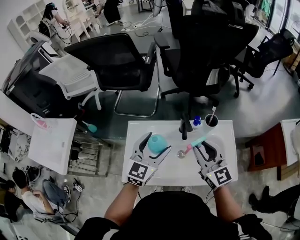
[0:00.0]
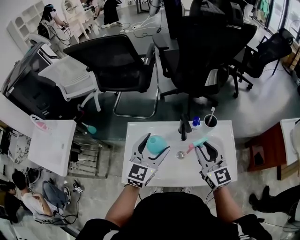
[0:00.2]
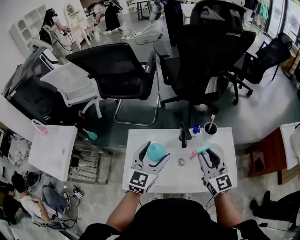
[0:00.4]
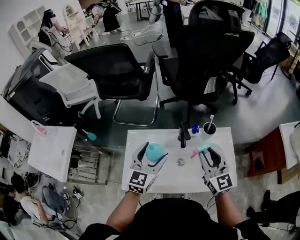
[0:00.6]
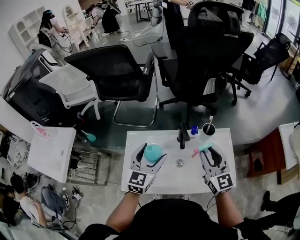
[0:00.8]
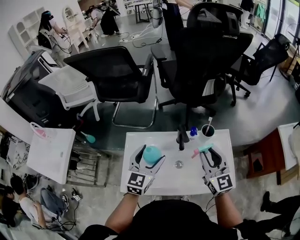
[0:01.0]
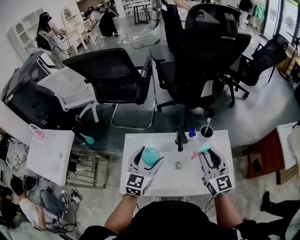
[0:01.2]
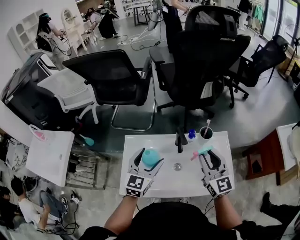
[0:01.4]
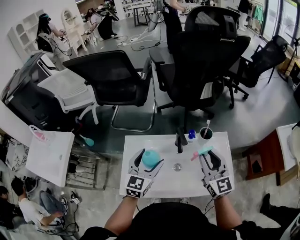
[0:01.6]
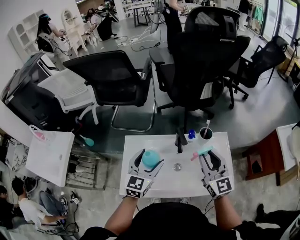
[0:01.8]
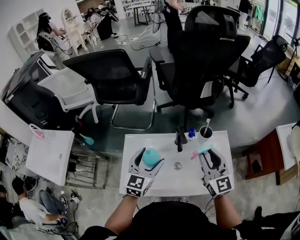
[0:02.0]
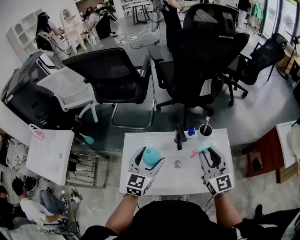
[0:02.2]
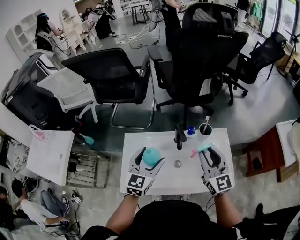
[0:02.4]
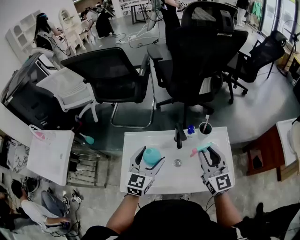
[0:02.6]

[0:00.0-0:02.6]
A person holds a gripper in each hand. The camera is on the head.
0:00.0 to 0:01.2: The right gripper goes roughly 5 cm to the right.
0:01.2 to 0:02.6: The grippers move only a little.

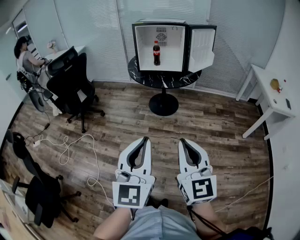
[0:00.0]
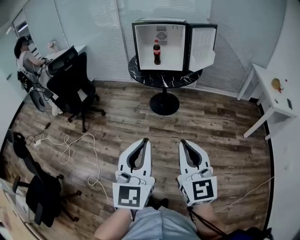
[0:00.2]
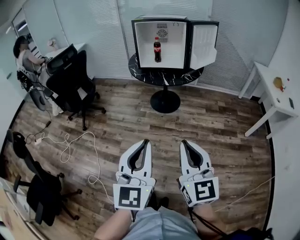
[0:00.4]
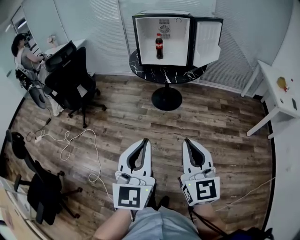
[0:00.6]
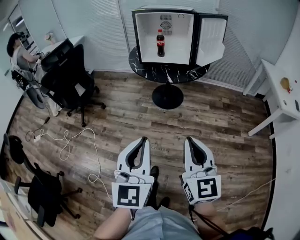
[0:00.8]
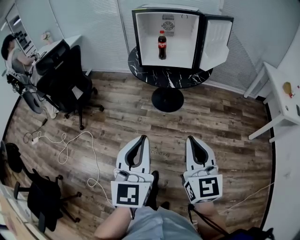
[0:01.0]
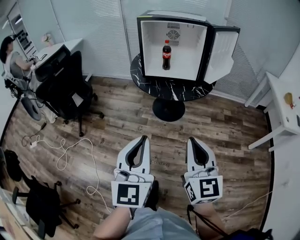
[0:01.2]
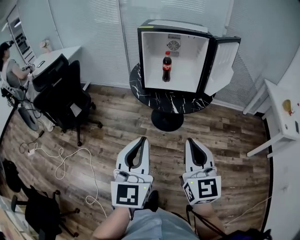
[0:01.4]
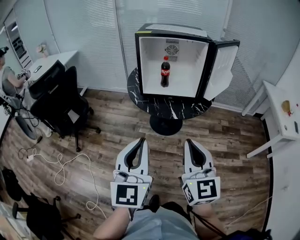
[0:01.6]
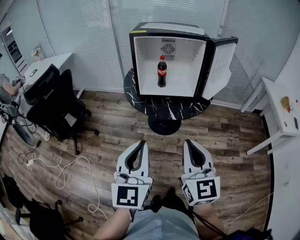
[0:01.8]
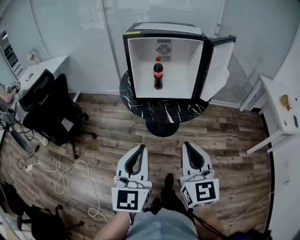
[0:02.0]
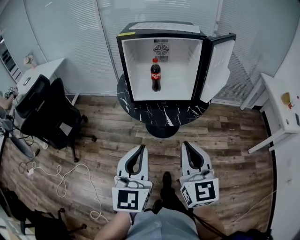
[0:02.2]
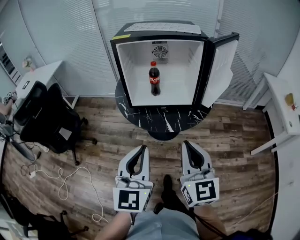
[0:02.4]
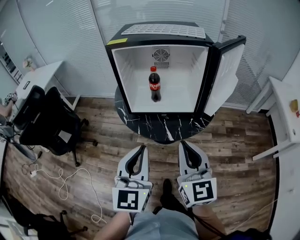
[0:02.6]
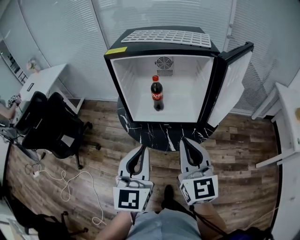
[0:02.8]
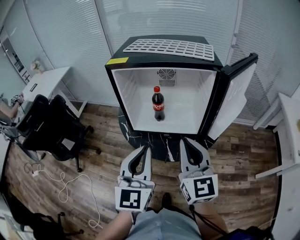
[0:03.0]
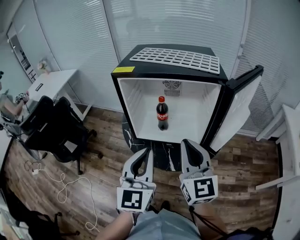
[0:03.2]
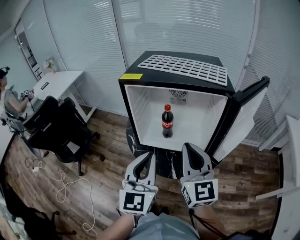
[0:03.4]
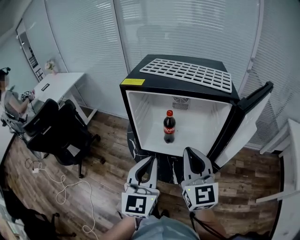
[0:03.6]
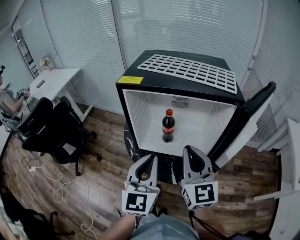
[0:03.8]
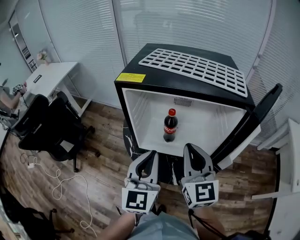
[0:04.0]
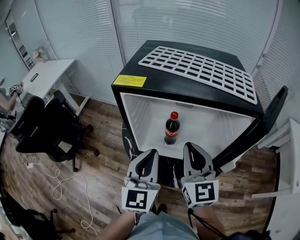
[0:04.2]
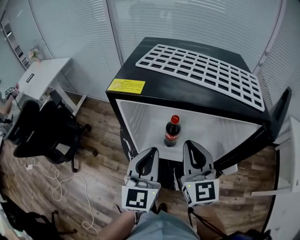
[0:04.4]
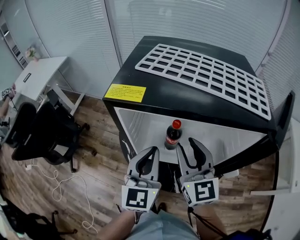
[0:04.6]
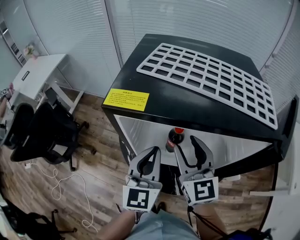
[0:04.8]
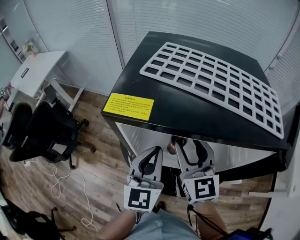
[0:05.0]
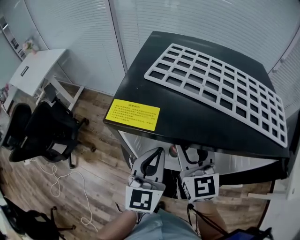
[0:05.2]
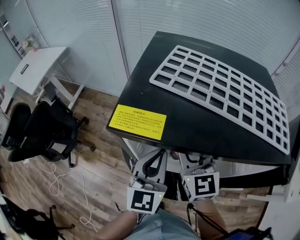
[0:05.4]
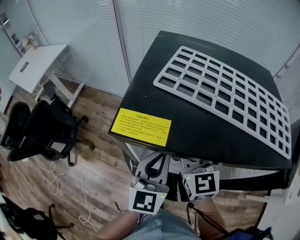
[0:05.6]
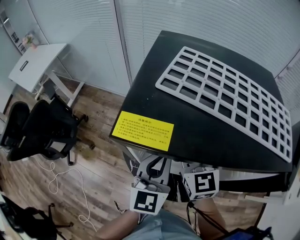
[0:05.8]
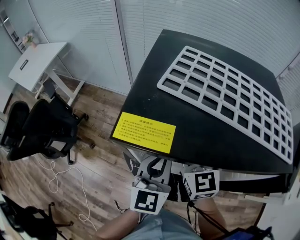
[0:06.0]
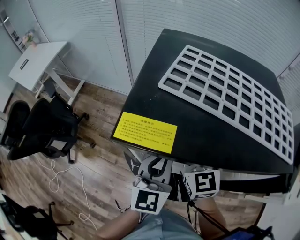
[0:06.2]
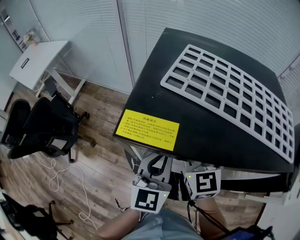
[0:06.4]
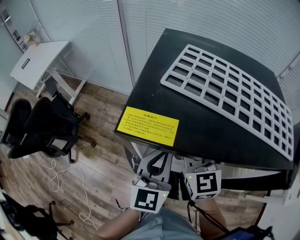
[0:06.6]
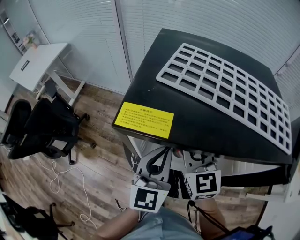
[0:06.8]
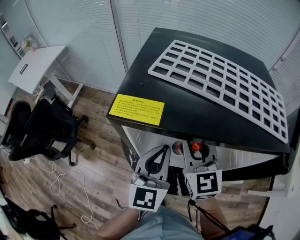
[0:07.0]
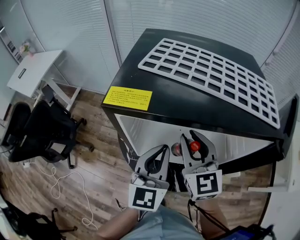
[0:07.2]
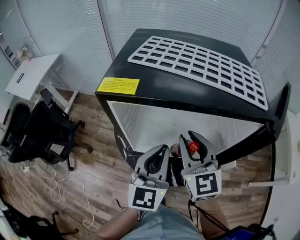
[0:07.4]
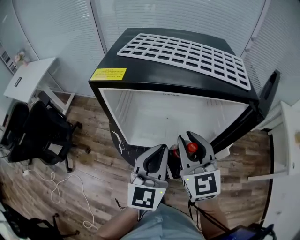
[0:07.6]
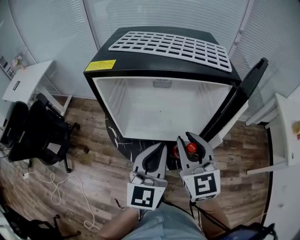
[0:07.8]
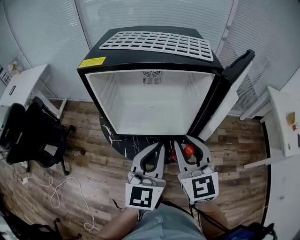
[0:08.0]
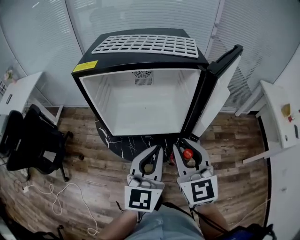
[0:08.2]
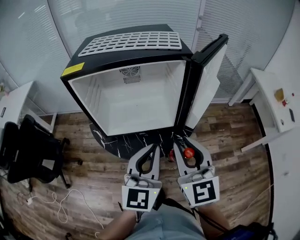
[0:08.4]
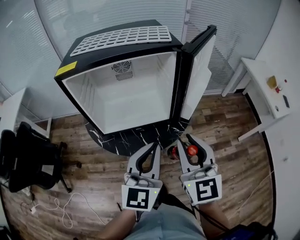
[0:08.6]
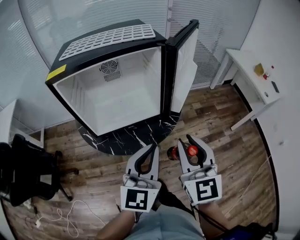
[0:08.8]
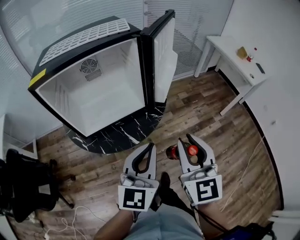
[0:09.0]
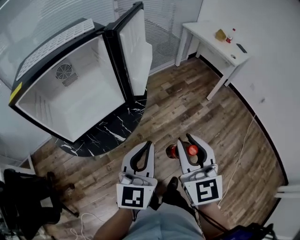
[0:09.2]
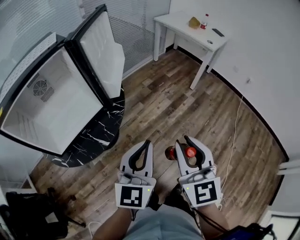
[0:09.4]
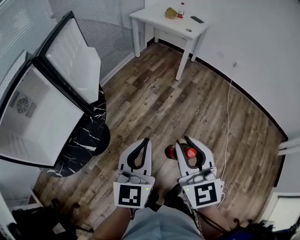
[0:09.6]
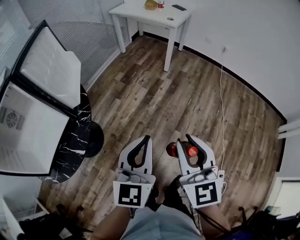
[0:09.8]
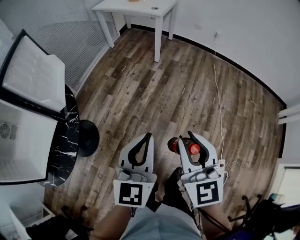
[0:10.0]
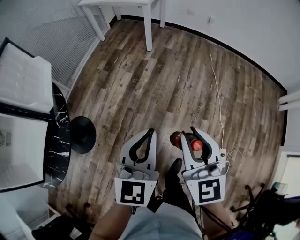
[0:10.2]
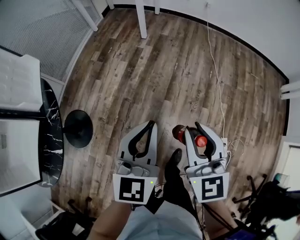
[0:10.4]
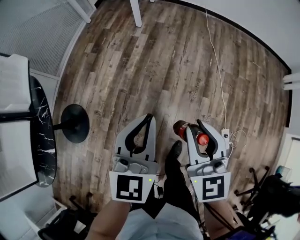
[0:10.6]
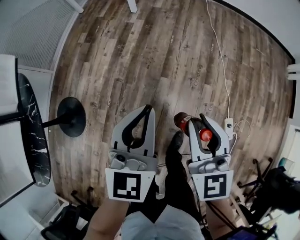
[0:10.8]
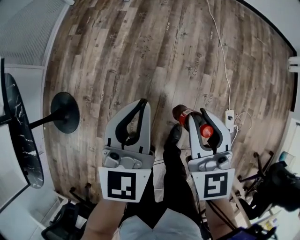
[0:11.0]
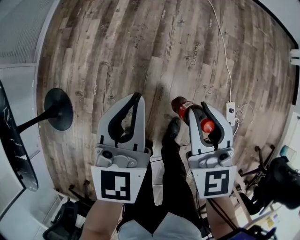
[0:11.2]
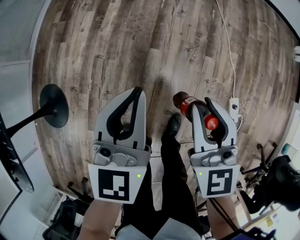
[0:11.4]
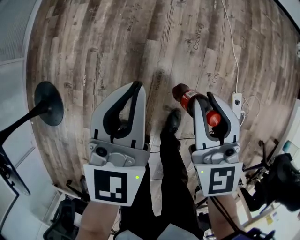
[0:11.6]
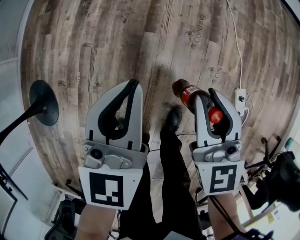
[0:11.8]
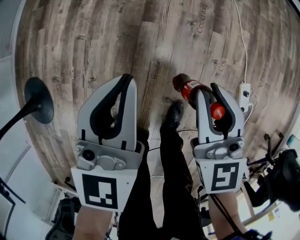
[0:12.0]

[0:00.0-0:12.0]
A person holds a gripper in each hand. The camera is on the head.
0:00.0 to 0:01.6: Both grippers travel together forward, some 35 cm.
0:01.6 to 0:03.0: The grippers both shift forward by about 30 cm.
0:03.0 to 0:04.4: The grippers both shift forward by about 20 cm.
0:04.4 to 0:06.0: Both grippers travel together forward, roughly 15 cm. The right gripper opens up.
0:06.0 to 0:07.6: Both grippers move backward and to the right, about 15 cm.
0:07.6 to 0:09.0: The left gripper ends up approximately 25 cm from where it was, and changes its angle by about 30 degrees; the right gripper ends up roughly 30 cm from where it was, and changes its angle by about 40 degrees.
0:09.0 to 0:10.4: The pair of grippers is taken some 40 cm. The left gripper rotates roughly 50 degrees; the right gripper turns by approximately 50 degrees.
0:10.4 to 0:12.0: The grippers both shift downward by approximately 40 cm.

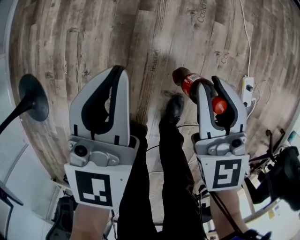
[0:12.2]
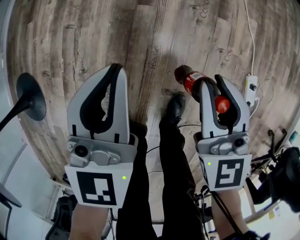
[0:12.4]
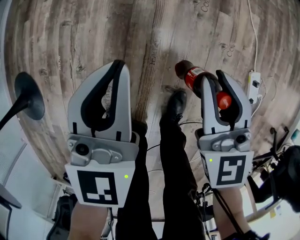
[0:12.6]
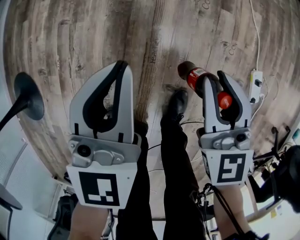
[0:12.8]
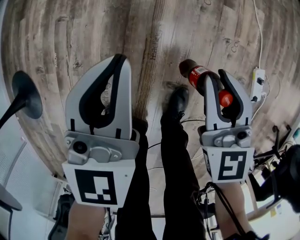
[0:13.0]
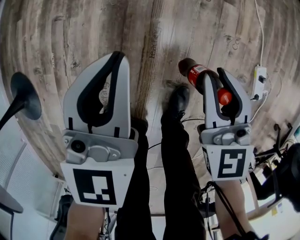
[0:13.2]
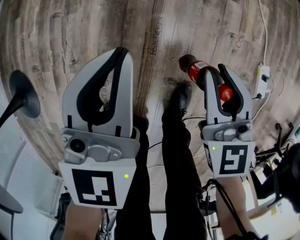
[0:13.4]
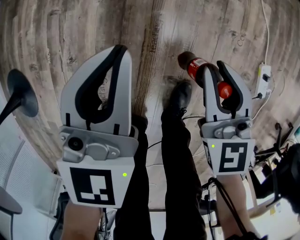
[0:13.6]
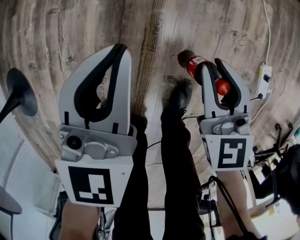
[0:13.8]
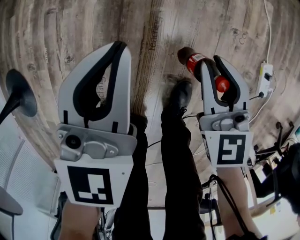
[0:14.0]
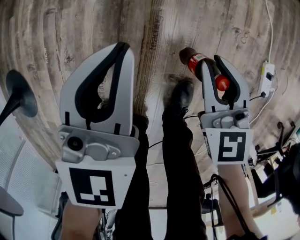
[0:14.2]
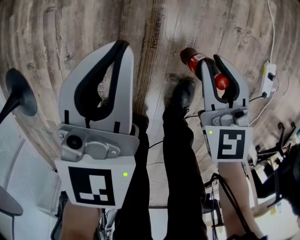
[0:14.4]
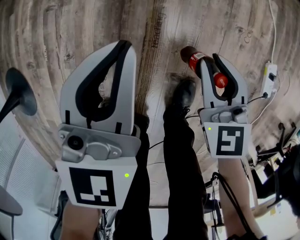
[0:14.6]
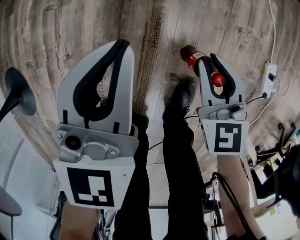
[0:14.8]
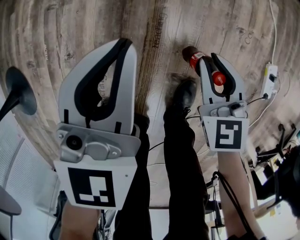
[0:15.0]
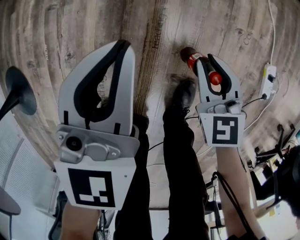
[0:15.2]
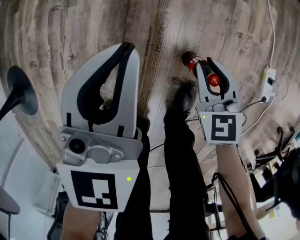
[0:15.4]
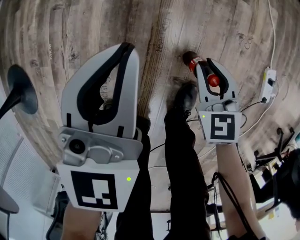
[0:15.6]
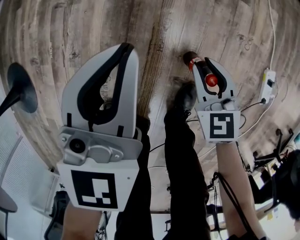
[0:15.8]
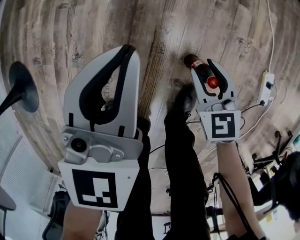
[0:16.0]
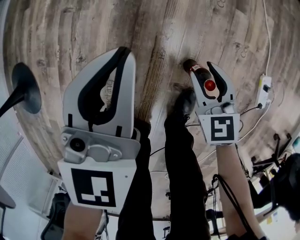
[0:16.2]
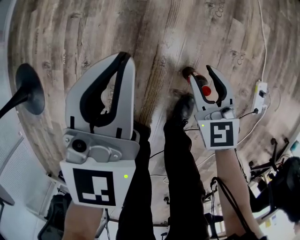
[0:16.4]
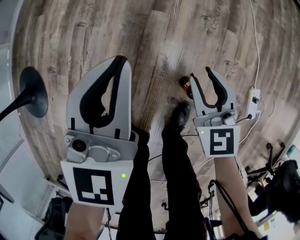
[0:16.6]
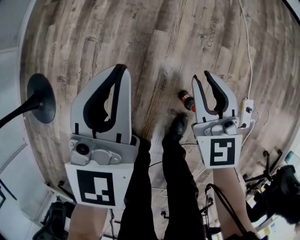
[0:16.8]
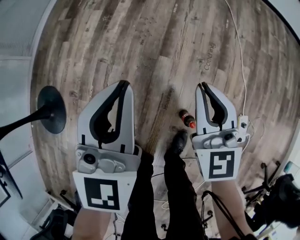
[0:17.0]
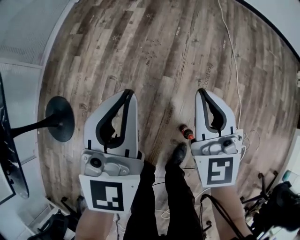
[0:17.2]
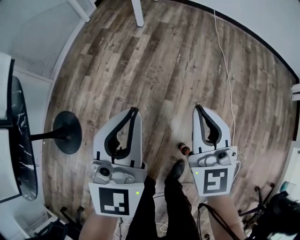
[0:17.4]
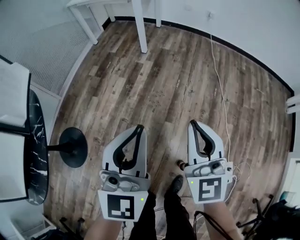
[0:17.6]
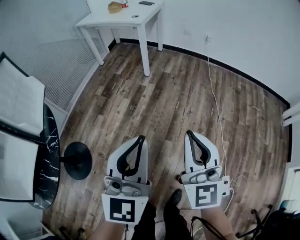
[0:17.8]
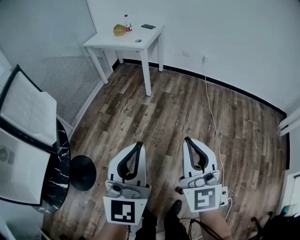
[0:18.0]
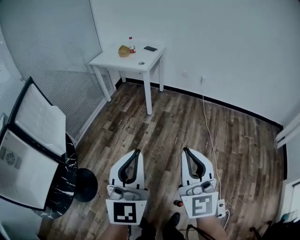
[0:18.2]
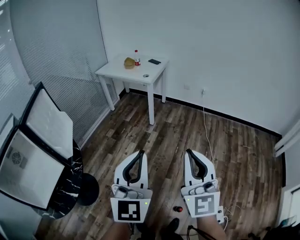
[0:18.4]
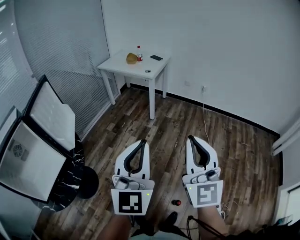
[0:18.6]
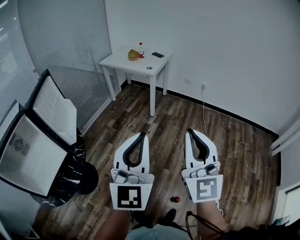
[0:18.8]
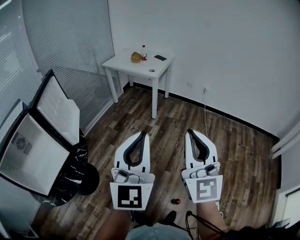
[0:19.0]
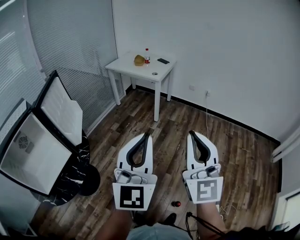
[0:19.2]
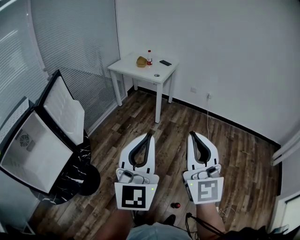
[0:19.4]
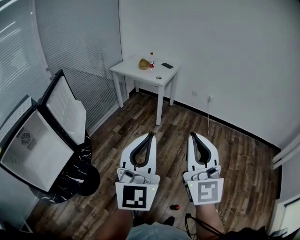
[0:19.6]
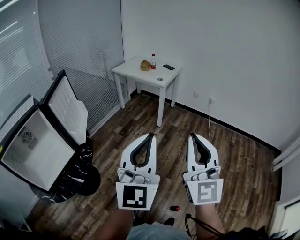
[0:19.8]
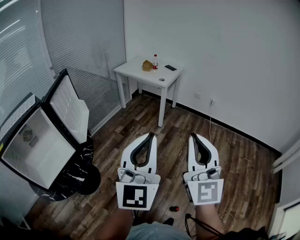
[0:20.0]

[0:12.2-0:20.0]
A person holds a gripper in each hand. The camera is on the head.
0:12.2 to 0:13.8: The two grippers go approximately 15 cm downward.
0:13.8 to 0:15.4: The right gripper moves downward, roughly 10 cm.
0:15.4 to 0:16.8: The left gripper shifts some 20 cm upward. Meanwhile the right gripper moves upward and forward, approximately 25 cm.
0:16.8 to 0:18.4: The two grippers go about 70 cm upward. The right gripper points its fingers about 40 degrees further upward, and closes its fingers, while the left gripper swivels roughly 30 degrees.
0:18.4 to 0:20.0: The left gripper travels upward and backward by roughly 10 cm, while the right gripper is displaced upward and to the left by about 10 cm.

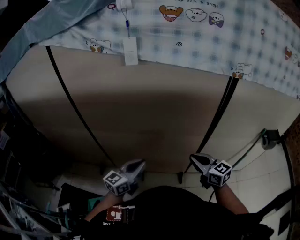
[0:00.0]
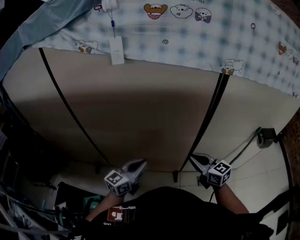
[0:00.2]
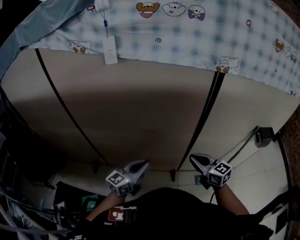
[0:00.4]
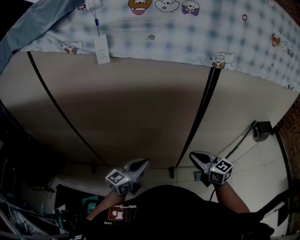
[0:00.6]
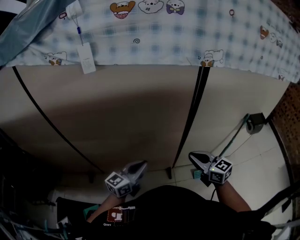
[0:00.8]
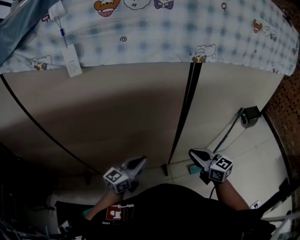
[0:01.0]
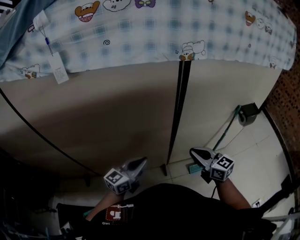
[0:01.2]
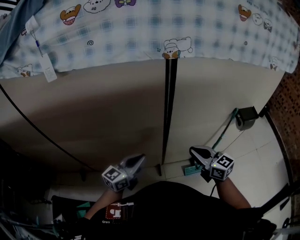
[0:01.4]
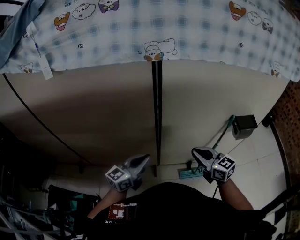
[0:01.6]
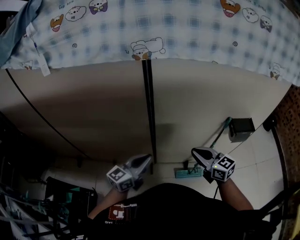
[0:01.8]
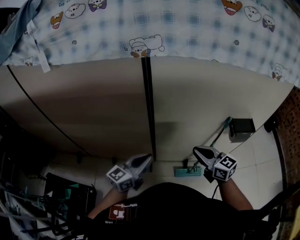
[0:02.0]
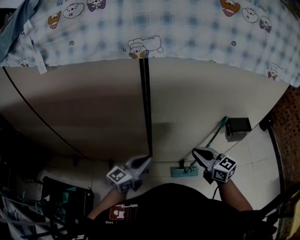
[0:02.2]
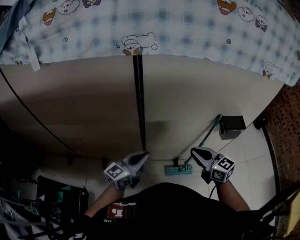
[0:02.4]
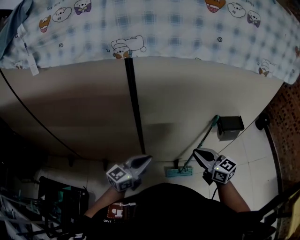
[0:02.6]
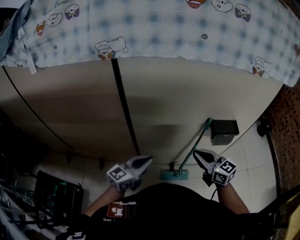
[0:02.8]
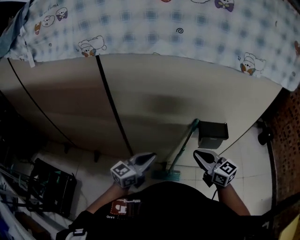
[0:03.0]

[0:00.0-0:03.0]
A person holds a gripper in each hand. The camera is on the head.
0:00.0 to 0:01.6: The two grippers go approximately 30 cm to the right.
0:01.6 to 0:03.0: The two grippers go roughly 30 cm to the right.
